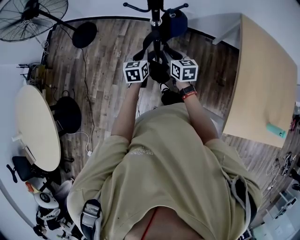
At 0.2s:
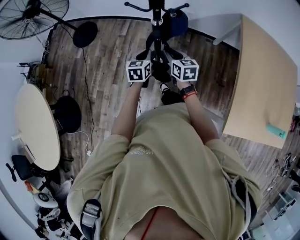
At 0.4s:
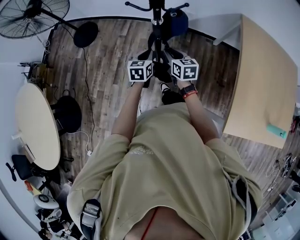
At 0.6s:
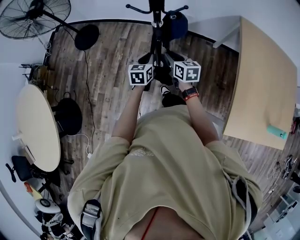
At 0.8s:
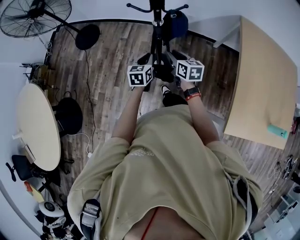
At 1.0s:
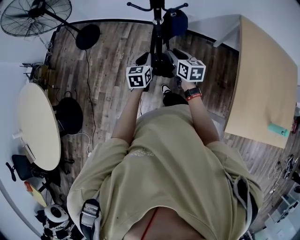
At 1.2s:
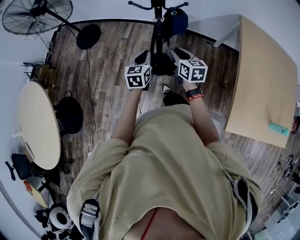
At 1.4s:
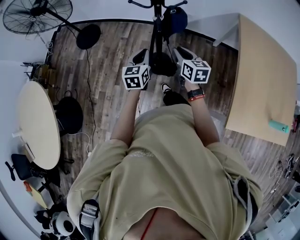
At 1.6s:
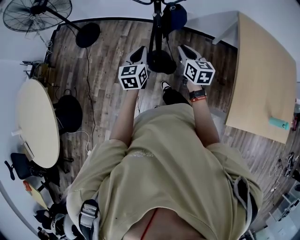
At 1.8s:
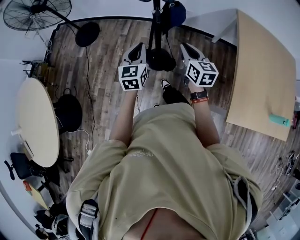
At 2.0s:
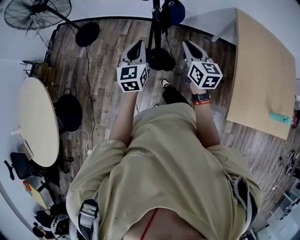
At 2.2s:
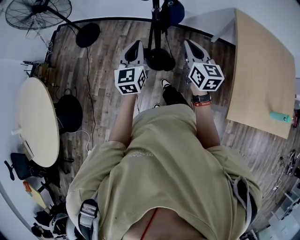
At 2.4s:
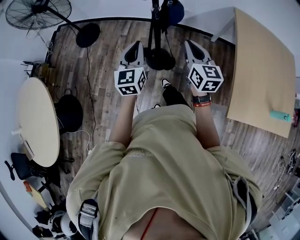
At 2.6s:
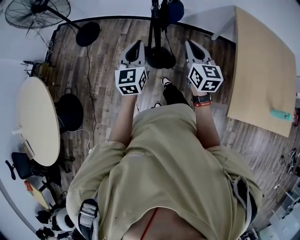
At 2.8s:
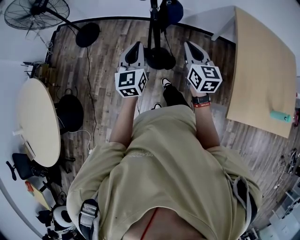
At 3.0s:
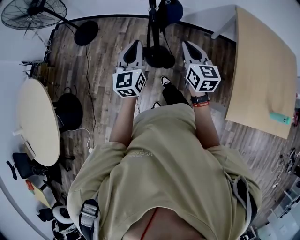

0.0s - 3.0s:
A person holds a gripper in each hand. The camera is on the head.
0.0s - 1.6s: Both grippers move backward and upward, some 15 cm.
1.6s - 3.0s: Both grippers move upward, some 10 cm.

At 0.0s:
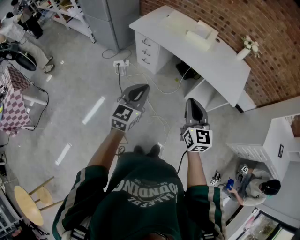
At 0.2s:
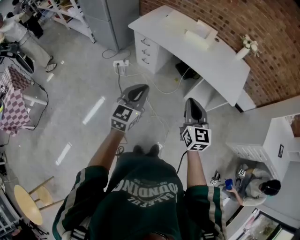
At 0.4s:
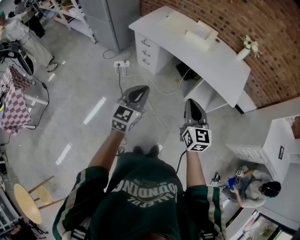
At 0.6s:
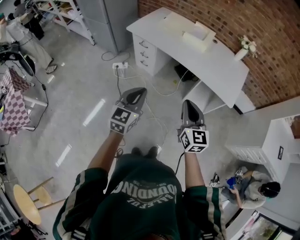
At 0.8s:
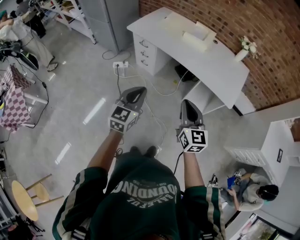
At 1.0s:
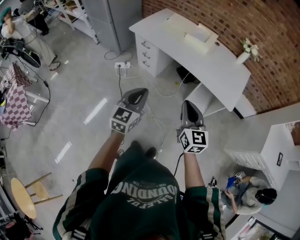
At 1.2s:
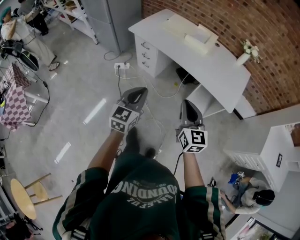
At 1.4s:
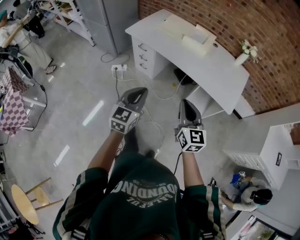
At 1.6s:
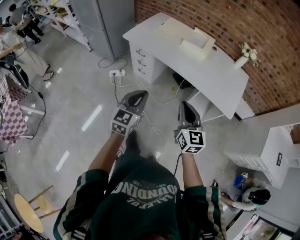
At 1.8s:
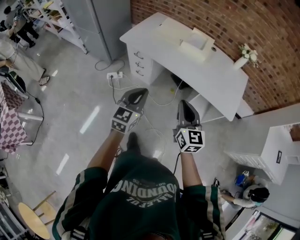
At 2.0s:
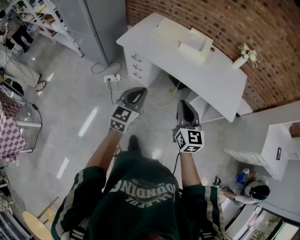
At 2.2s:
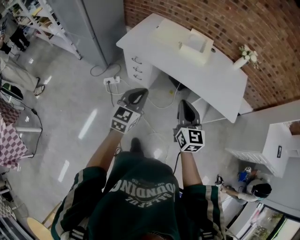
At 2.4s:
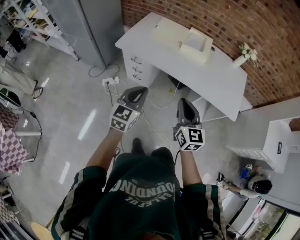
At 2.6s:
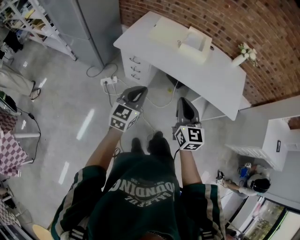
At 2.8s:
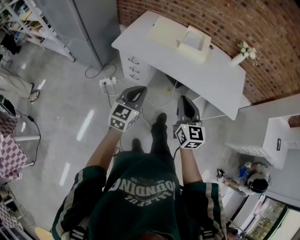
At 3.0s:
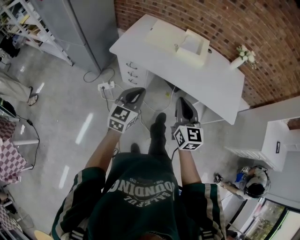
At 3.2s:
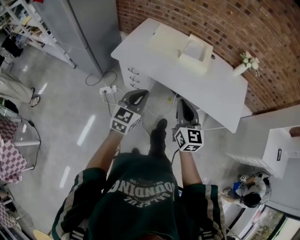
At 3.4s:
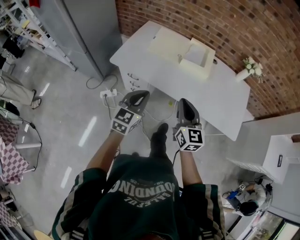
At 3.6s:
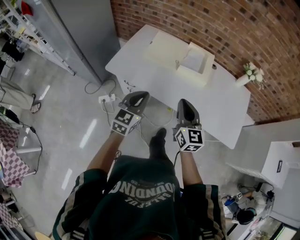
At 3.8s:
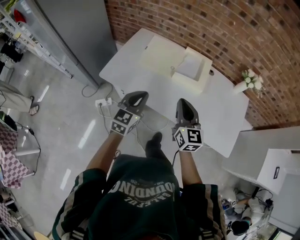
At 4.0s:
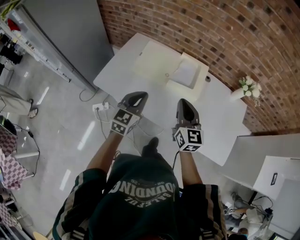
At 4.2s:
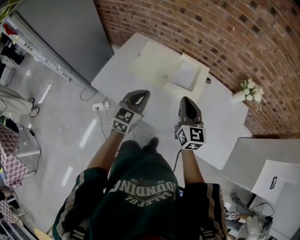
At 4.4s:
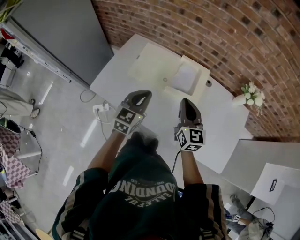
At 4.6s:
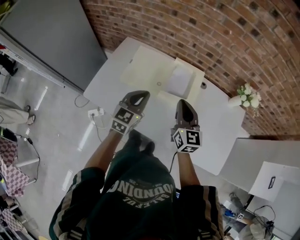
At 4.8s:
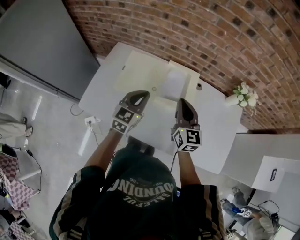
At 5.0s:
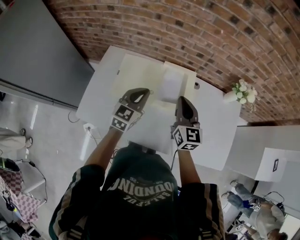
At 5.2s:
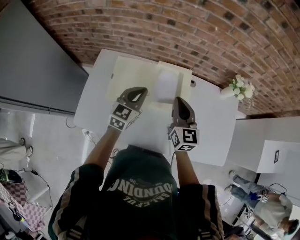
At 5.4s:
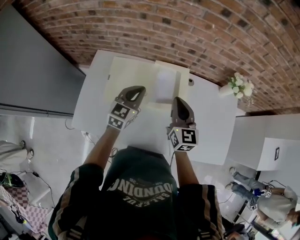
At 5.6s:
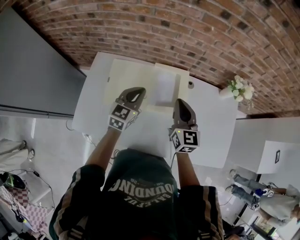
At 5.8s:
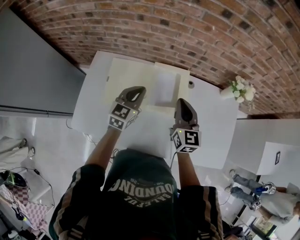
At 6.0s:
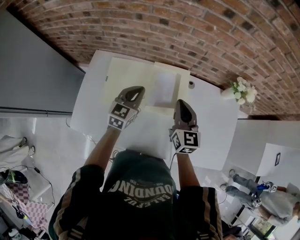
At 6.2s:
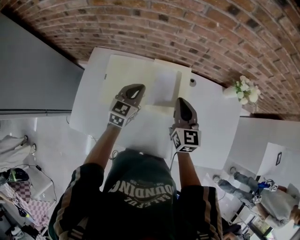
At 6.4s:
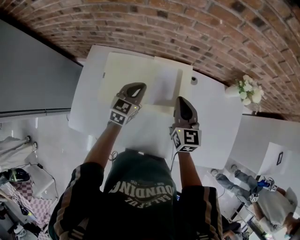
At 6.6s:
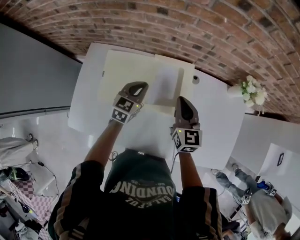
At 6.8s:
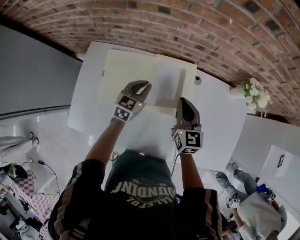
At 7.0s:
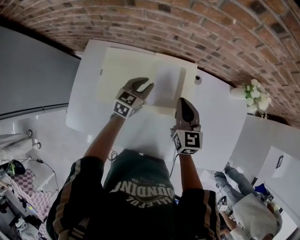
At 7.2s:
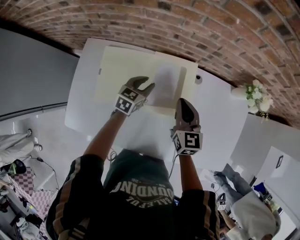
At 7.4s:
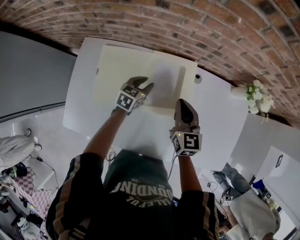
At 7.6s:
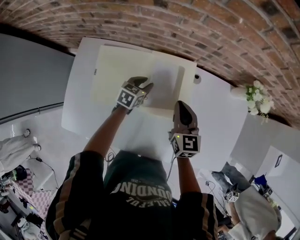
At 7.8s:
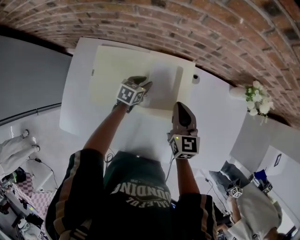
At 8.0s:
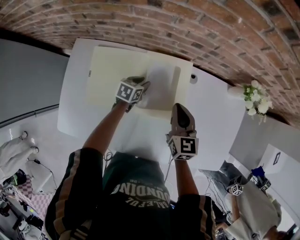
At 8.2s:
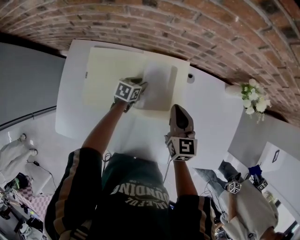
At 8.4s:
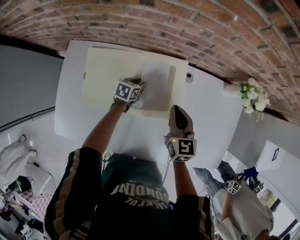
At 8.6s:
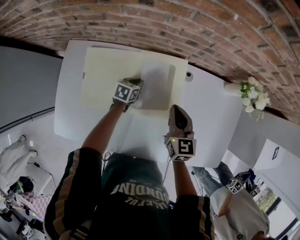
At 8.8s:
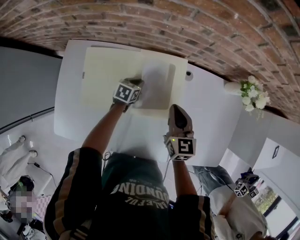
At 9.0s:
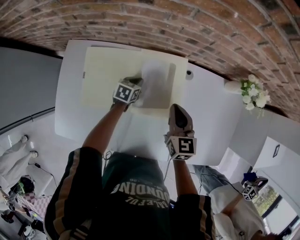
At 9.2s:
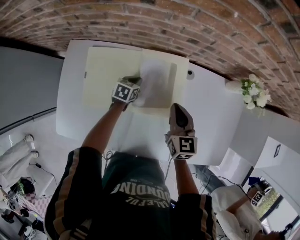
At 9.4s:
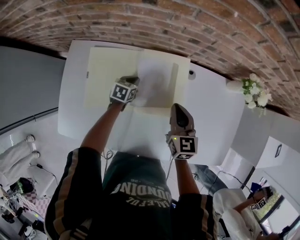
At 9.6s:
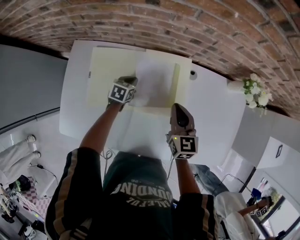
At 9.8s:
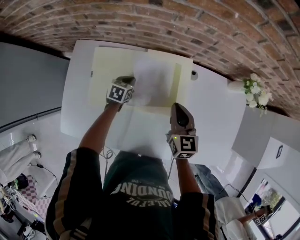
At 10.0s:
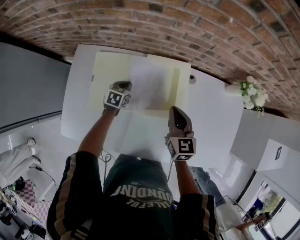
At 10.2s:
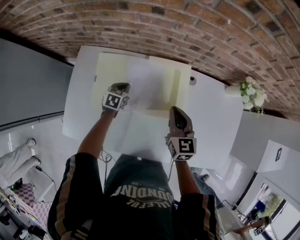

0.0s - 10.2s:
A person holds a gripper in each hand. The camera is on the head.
0.0s - 1.4s: The right gripper ends up approximately 5 cm from where it was, while the left gripper moves about 5 cm.
1.4s - 3.0s: Both grippers move forward and to the left, approximately 25 cm.
3.0s - 4.4s: The grippers both shift forward by about 40 cm.
4.4s - 5.8s: Both grippers move forward, some 15 cm.
5.8s - 7.2s: The right gripper shifts approximately 10 cm downward and forward, while the left gripper moves downward and forward, approximately 20 cm, turns by about 20 degrees, and opens up.
7.2s - 8.8s: The left gripper shifts some 15 cm downward, rotates approximately 20 degrees, and closes its fingers.
8.8s - 10.2s: The right gripper shifts by about 5 cm, while the left gripper heads to the left, covering about 10 cm.

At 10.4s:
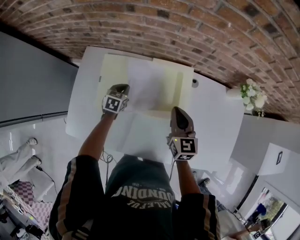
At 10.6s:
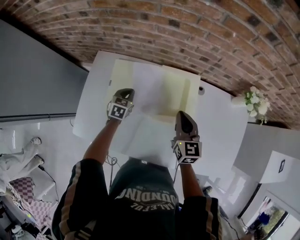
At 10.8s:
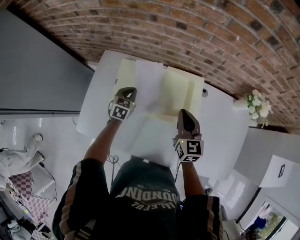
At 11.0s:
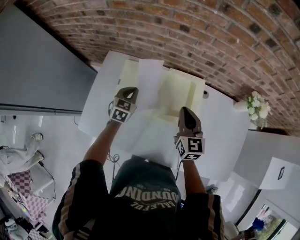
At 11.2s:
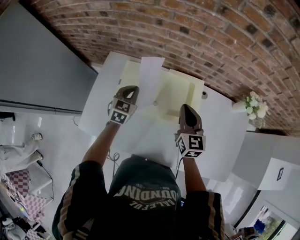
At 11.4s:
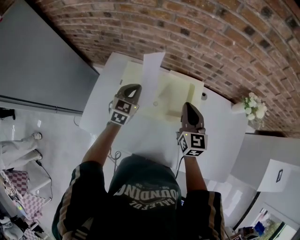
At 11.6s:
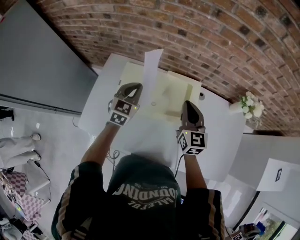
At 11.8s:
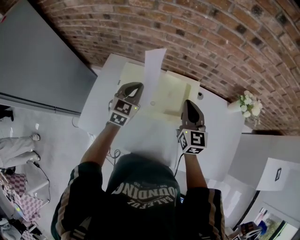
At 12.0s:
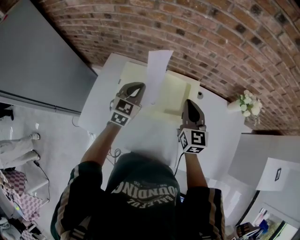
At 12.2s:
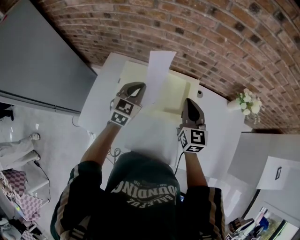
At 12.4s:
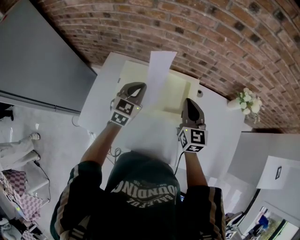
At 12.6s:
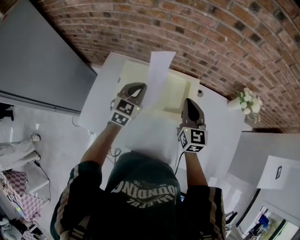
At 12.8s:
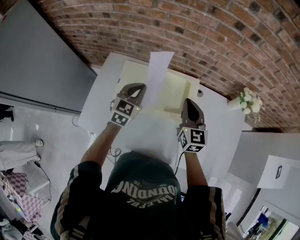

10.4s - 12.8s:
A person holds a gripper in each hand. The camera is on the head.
10.4s - 11.6s: The left gripper travels upward by approximately 20 cm, and turns by some 30 degrees. Meanwhile the right gripper shifts about 10 cm upward.
11.6s - 12.8s: The grippers make only small movements.

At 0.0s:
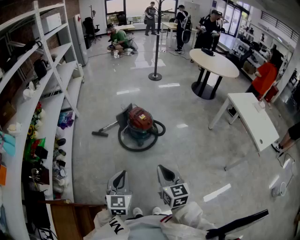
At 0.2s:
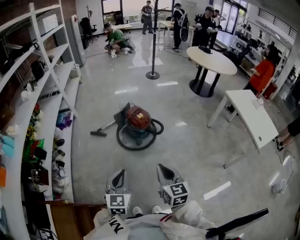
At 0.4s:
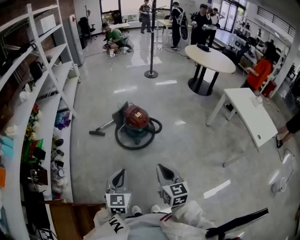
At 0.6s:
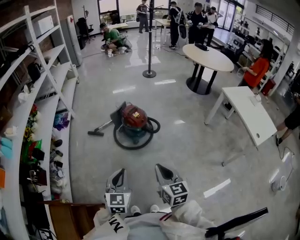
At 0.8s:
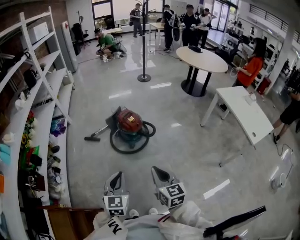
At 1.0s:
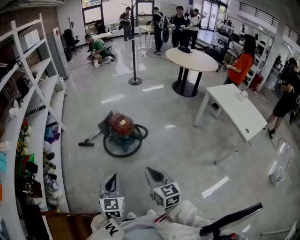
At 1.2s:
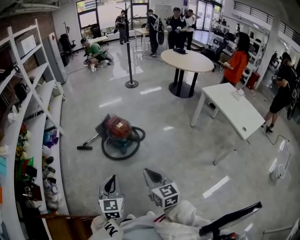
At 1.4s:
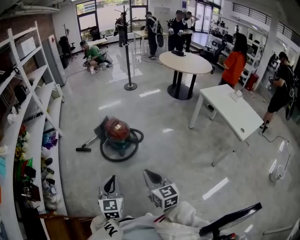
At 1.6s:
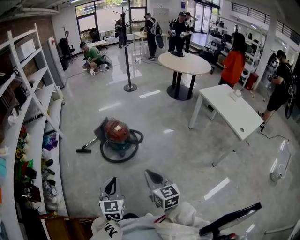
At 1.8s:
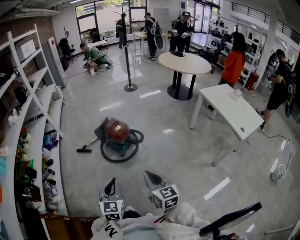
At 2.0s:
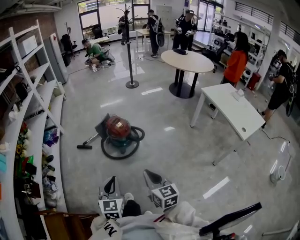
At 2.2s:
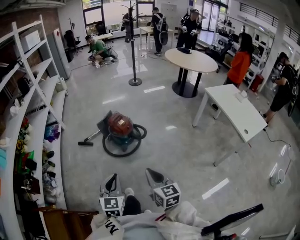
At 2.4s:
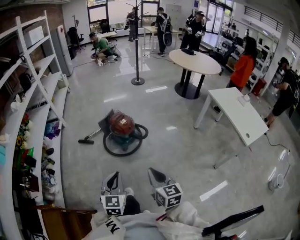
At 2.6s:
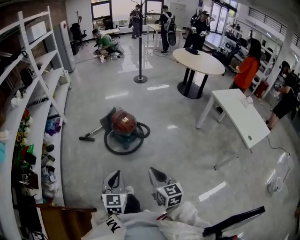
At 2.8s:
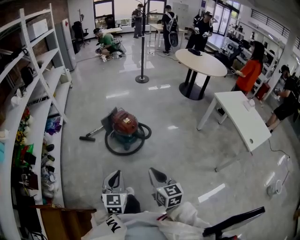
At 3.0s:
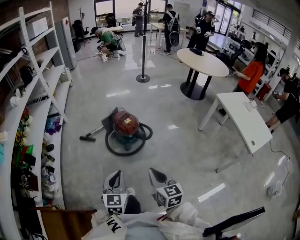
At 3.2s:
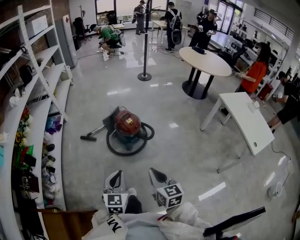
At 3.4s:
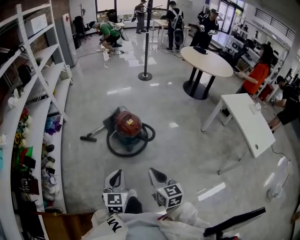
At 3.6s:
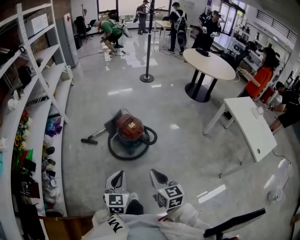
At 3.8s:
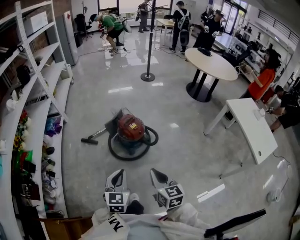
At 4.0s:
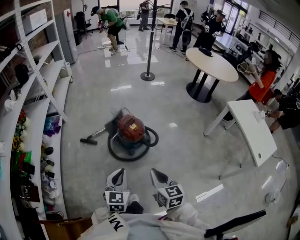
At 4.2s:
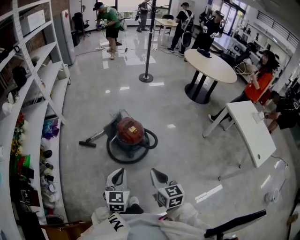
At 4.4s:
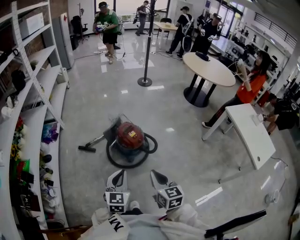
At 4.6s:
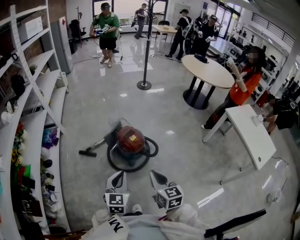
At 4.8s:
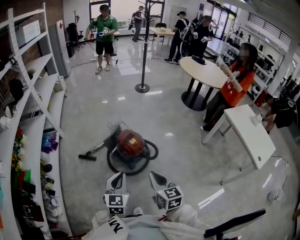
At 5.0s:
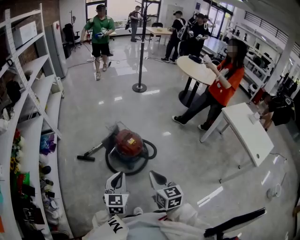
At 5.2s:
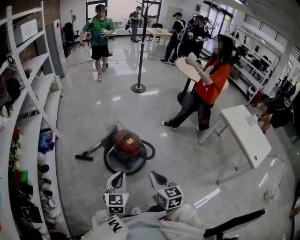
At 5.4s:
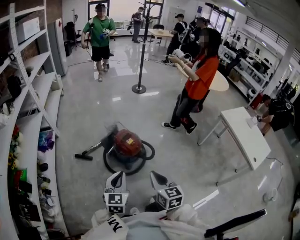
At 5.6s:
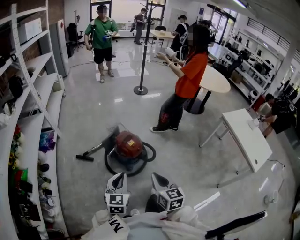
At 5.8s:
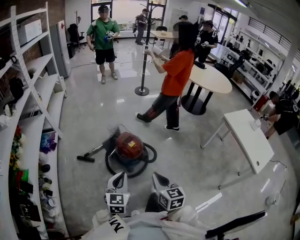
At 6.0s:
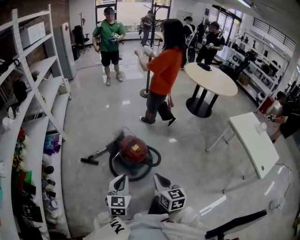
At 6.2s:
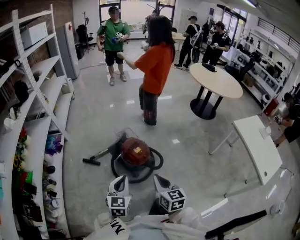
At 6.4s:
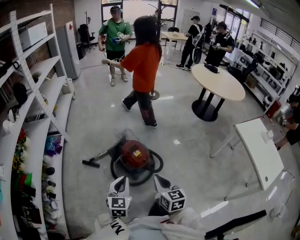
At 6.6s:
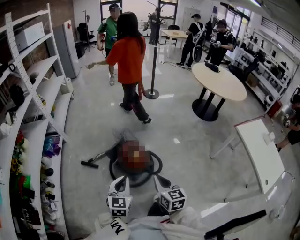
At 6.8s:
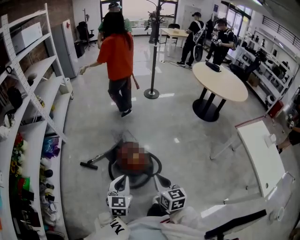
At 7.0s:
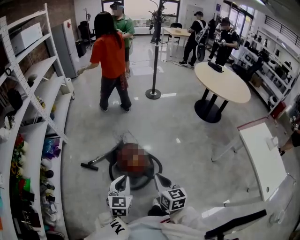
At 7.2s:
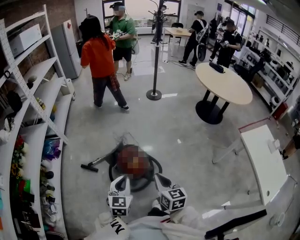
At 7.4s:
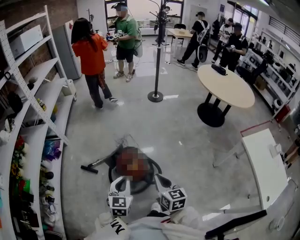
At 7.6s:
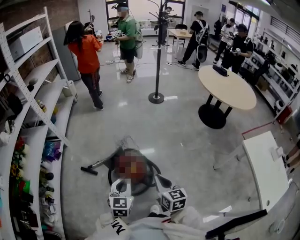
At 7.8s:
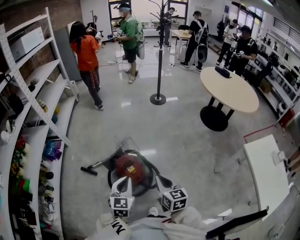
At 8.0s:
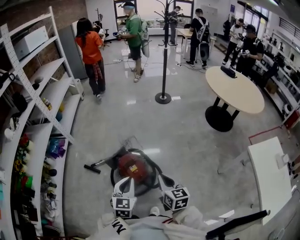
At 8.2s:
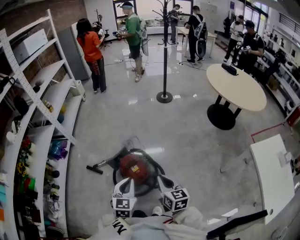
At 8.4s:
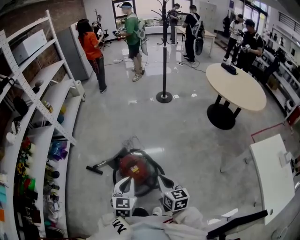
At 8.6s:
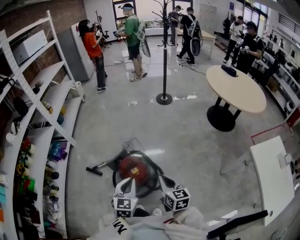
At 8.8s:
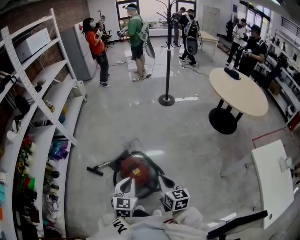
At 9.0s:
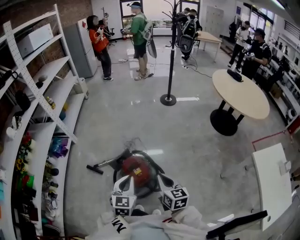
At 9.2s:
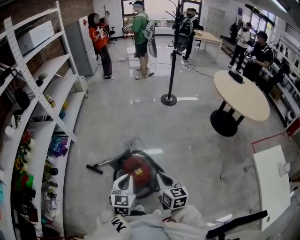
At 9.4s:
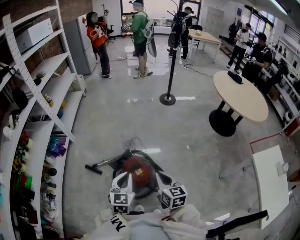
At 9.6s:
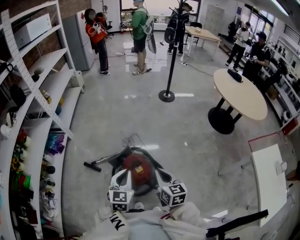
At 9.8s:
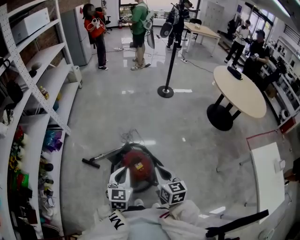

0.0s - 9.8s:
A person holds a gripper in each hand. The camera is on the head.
0.0s - 1.4s: Both grippers move to the right, roughly 10 cm.
1.4s - 2.8s: The grippers make only small movements.
2.8s - 4.2s: The grippers both shift forward by roughly 15 cm.
4.2s - 5.6s: The left gripper changes place by approximately 5 cm.
5.6s - 7.0s: Both grippers travel together forward and to the right, approximately 15 cm.
7.0s - 8.4s: The right gripper shifts some 10 cm forward and to the right. The left gripper goes roughly 10 cm to the right and forward.
8.4s - 9.8s: Both grippers travel together to the left and forward, approximately 10 cm.
